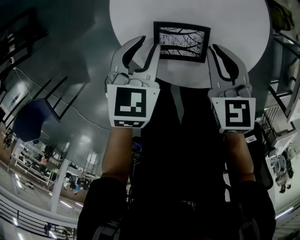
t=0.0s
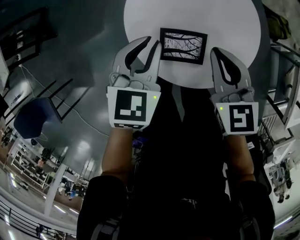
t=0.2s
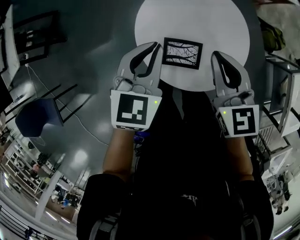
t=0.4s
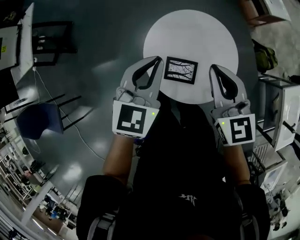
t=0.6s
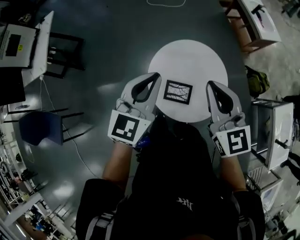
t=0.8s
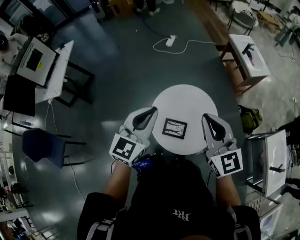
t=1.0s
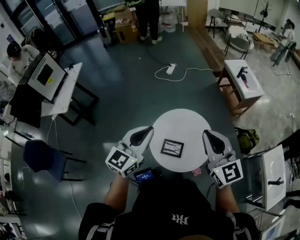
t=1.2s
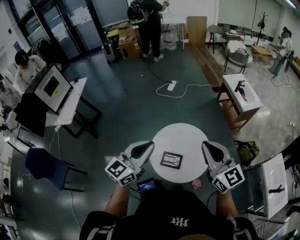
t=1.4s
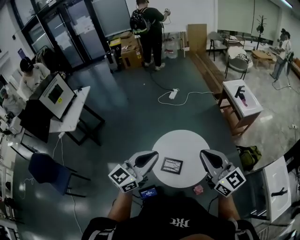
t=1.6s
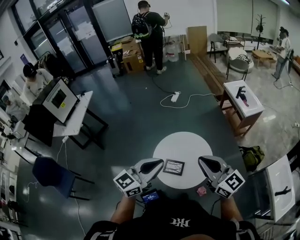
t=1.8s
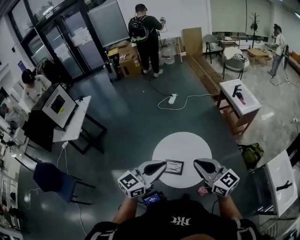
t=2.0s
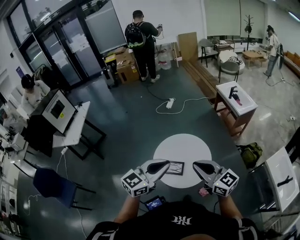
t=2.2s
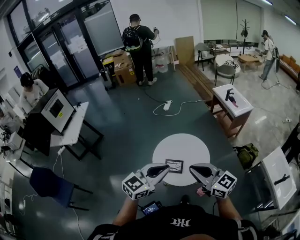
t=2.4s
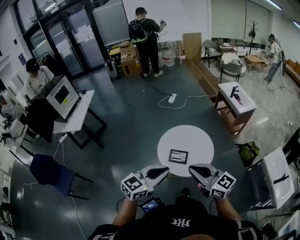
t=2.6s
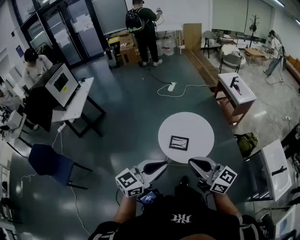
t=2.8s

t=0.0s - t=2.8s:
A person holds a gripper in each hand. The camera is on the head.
t=0.0s - t=1.4s: Both grippers move upward, about 50 cm. The right gripper tilts its fingers roughly 50 degrees upward, while the left gripper tips its fingers upward by approximately 50 degrees, and closes.
t=1.4s - t=2.8s: The right gripper is displaced backward and to the left by some 30 cm, and turns by about 30 degrees. The left gripper heads backward, covering some 25 cm.

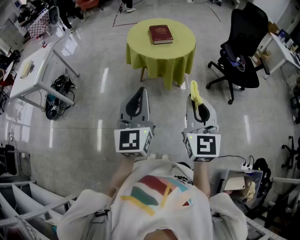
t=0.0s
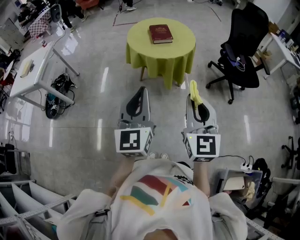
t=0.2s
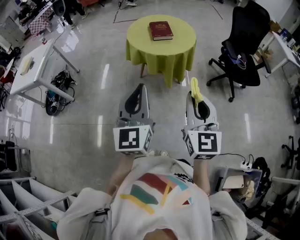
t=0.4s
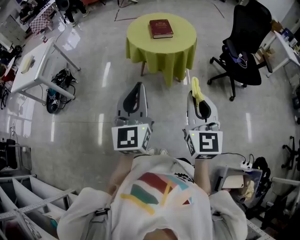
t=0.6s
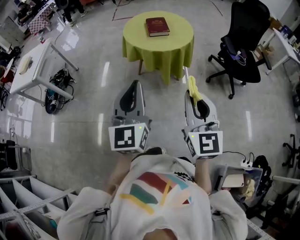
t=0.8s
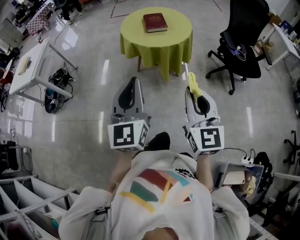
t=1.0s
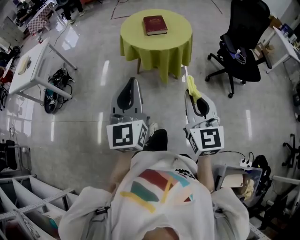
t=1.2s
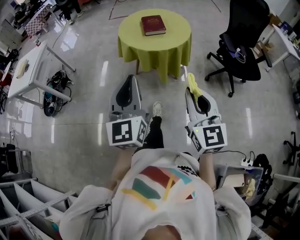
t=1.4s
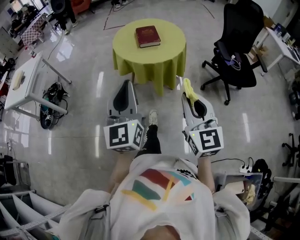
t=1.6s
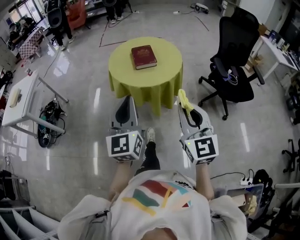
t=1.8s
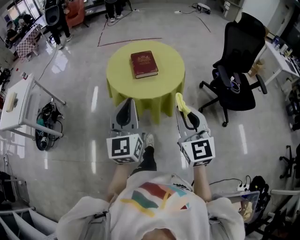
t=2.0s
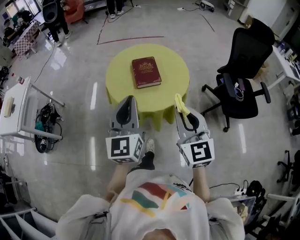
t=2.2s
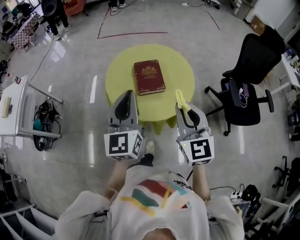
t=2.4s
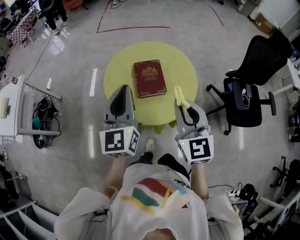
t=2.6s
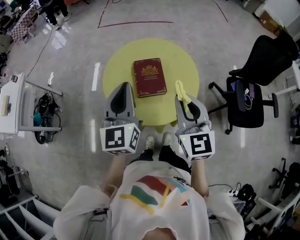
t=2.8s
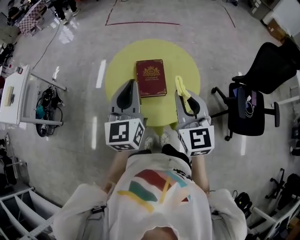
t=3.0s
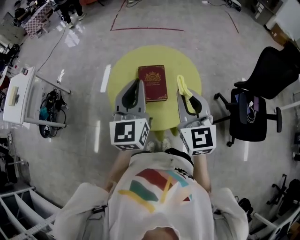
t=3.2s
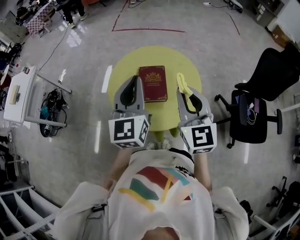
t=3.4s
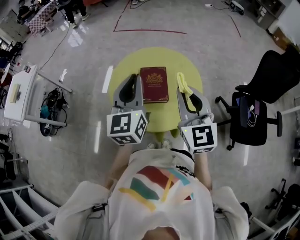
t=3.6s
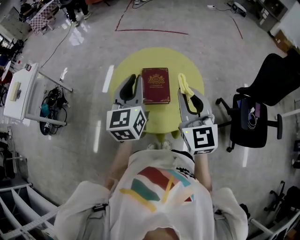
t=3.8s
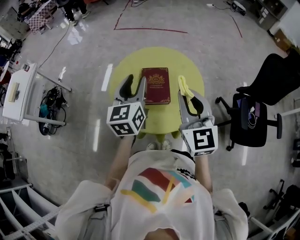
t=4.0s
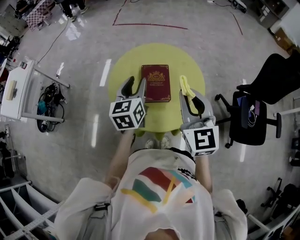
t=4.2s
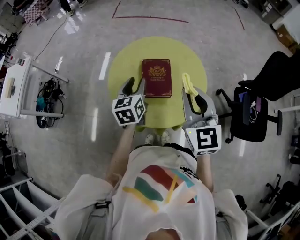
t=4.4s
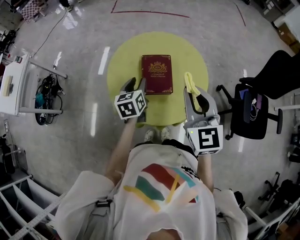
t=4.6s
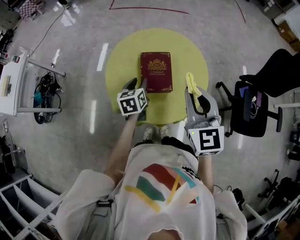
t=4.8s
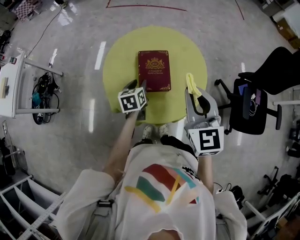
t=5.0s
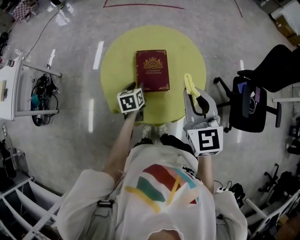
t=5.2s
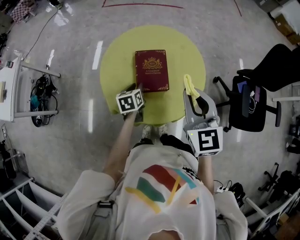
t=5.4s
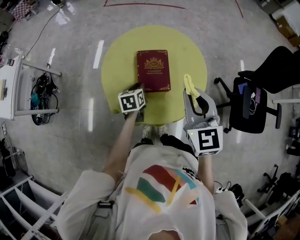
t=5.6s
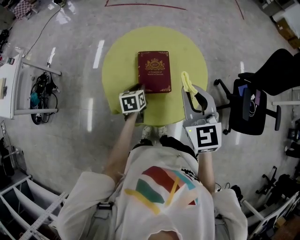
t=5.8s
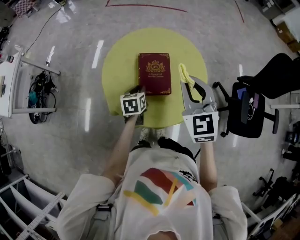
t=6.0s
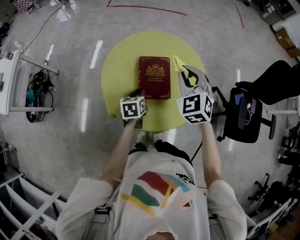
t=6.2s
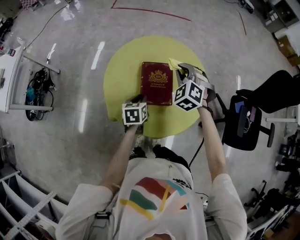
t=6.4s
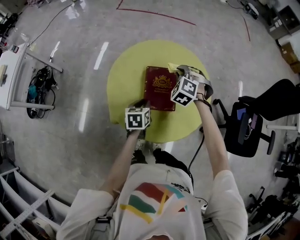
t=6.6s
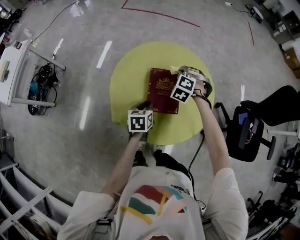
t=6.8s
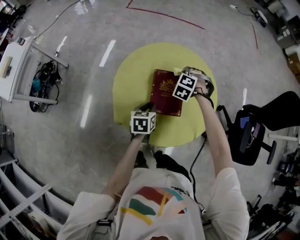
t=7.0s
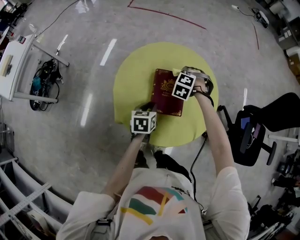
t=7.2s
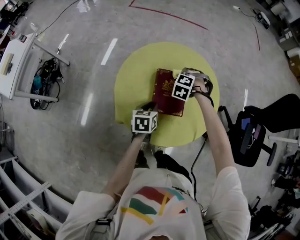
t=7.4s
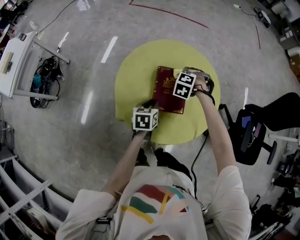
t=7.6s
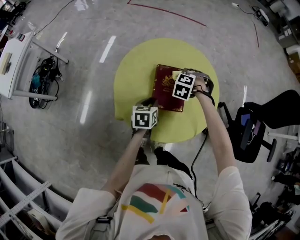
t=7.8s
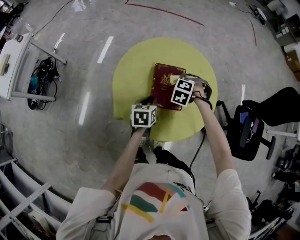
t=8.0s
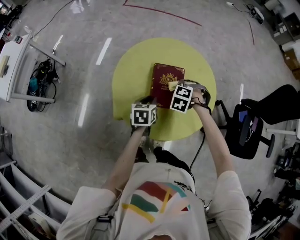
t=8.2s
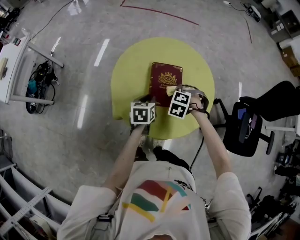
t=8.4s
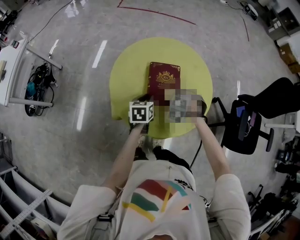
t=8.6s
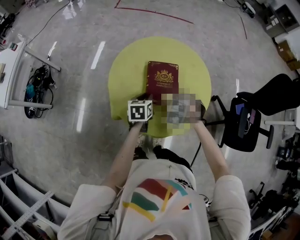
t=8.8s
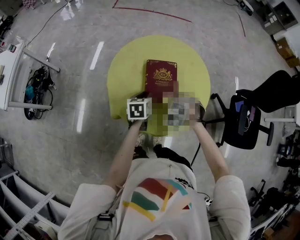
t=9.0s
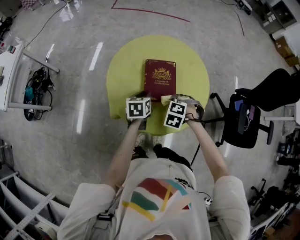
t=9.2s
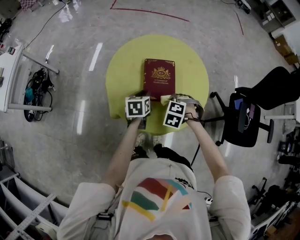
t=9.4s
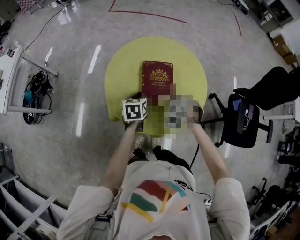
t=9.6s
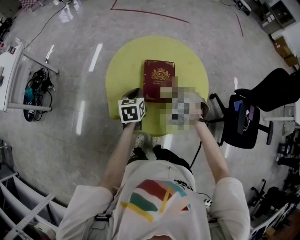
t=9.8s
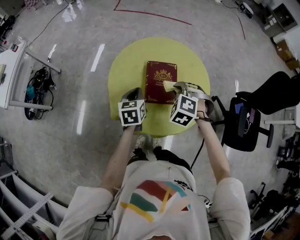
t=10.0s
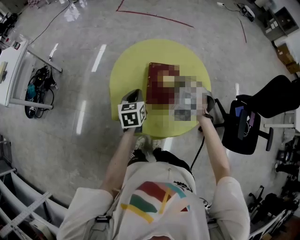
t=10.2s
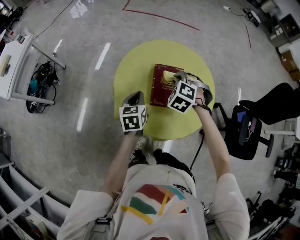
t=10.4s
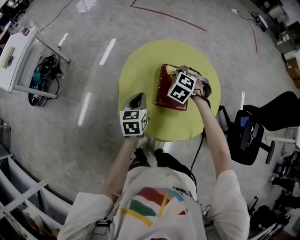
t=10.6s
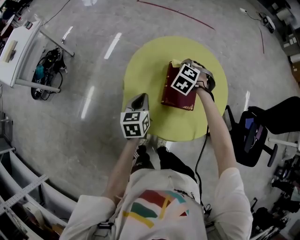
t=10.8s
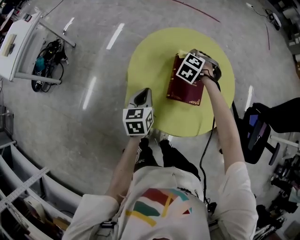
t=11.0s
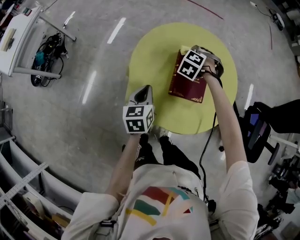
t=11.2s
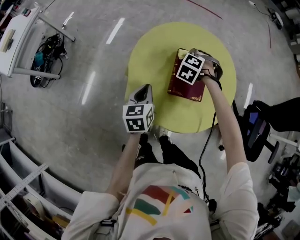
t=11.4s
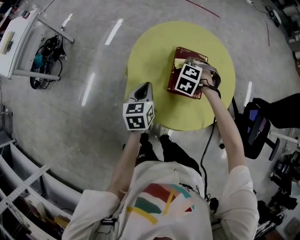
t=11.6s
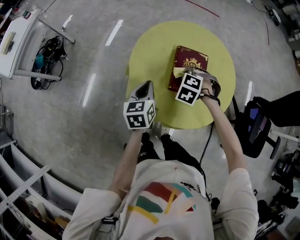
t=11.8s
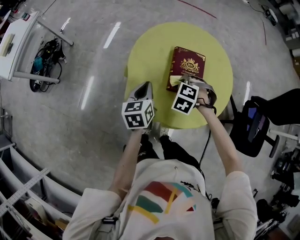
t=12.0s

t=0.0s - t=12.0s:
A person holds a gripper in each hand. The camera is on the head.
t=0.0s - t=1.6s: The left gripper travels forward by roughly 10 cm. Meanwhile the right gripper shifts about 10 cm forward and to the right.
t=1.6s - t=3.0s: Both grippers are carried forward, about 50 cm.
t=3.0s - t=4.4s: The left gripper goes about 15 cm downward and forward, changes its angle by some 30 degrees, and opens up.
t=4.4s - t=6.0s: The right gripper heads forward, covering about 5 cm, while the left gripper moves downward, about 15 cm, and turns by some 20 degrees.
t=6.0s - t=7.6s: The right gripper shifts approximately 30 cm downward and forward, and angles its fingers downward, by some 50 degrees.
t=7.6s - t=9.0s: The right gripper changes place by roughly 20 cm.
t=9.0s - t=10.4s: The left gripper moves upward, approximately 5 cm. The right gripper moves approximately 15 cm.
t=10.4s - t=12.0s: The left gripper shifts by some 5 cm. The right gripper heads downward and backward, covering roughly 10 cm.

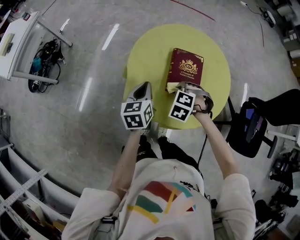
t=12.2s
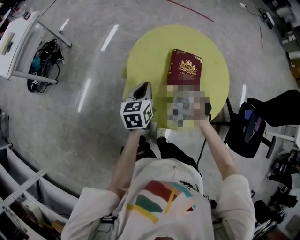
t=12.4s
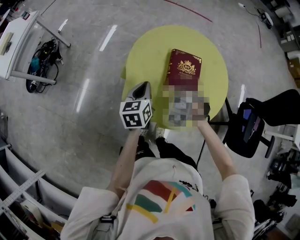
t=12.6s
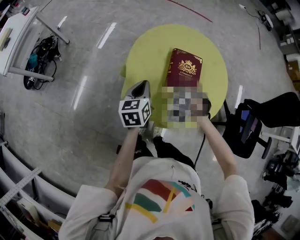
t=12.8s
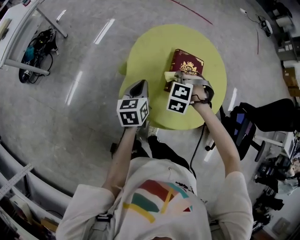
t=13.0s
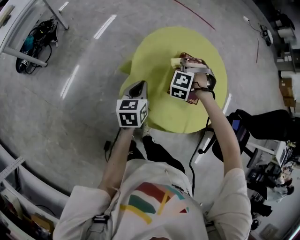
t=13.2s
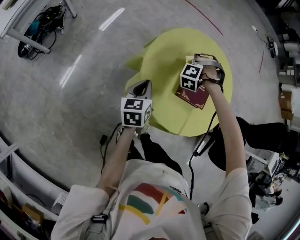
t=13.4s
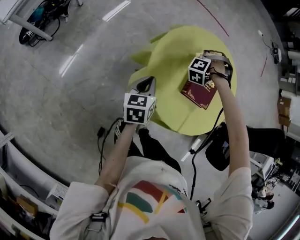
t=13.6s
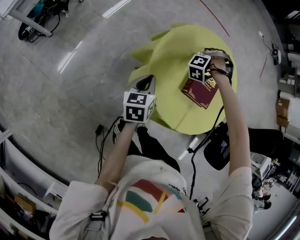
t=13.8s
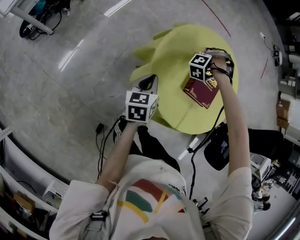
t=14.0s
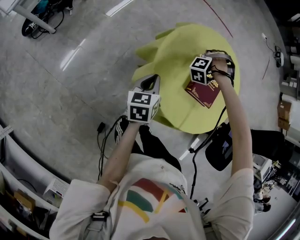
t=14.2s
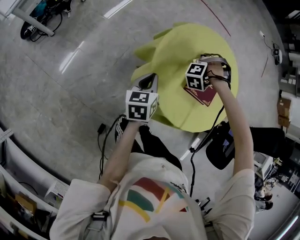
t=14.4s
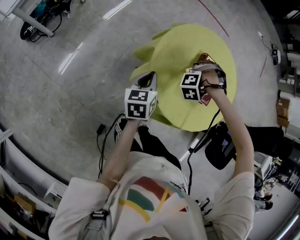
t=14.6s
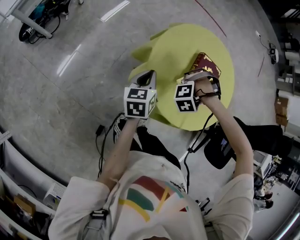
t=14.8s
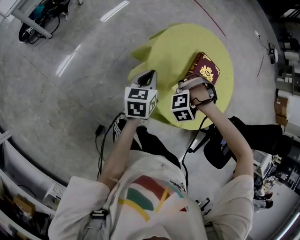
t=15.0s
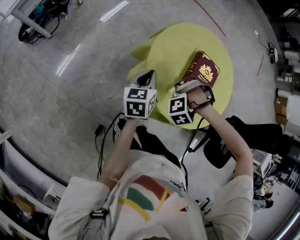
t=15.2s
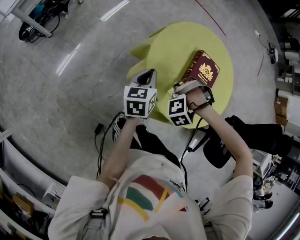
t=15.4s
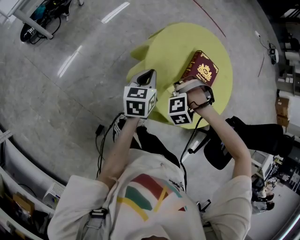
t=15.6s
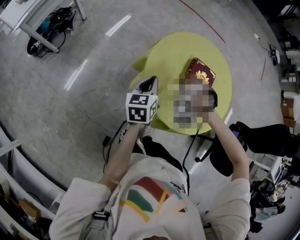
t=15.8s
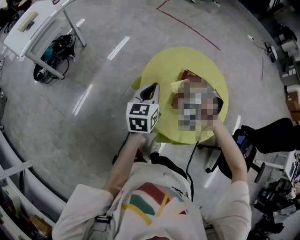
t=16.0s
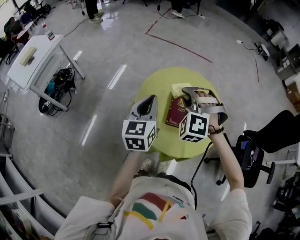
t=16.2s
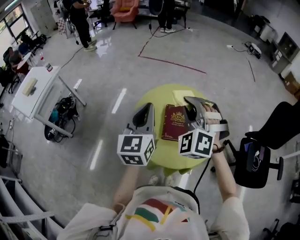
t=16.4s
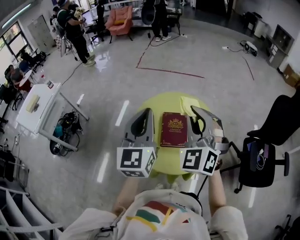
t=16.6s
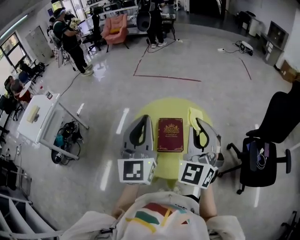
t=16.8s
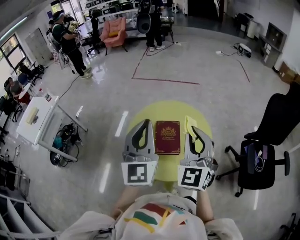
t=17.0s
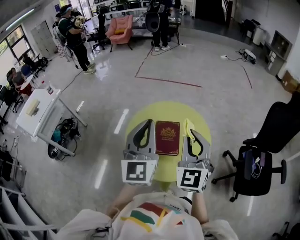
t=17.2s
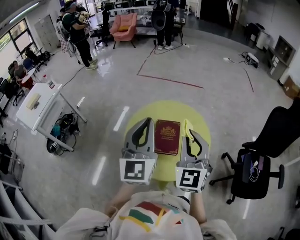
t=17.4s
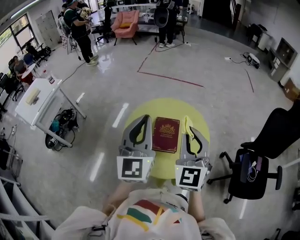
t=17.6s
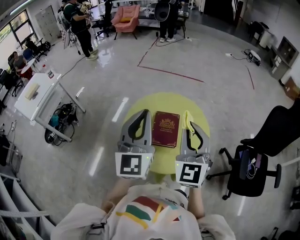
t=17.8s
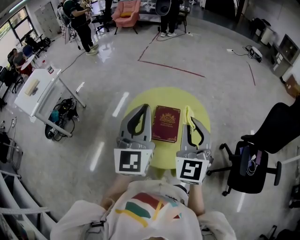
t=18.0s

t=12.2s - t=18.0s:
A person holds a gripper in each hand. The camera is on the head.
t=12.2s - t=13.6s: The right gripper changes place by some 20 cm, and turns by some 50 degrees, while the left gripper moves about 5 cm.
t=13.6s - t=15.0s: The right gripper travels backward and to the right by roughly 20 cm, and changes its angle by some 30 degrees.
t=15.0s - t=16.6s: The two grippers go roughly 35 cm upward. The right gripper points its fingers about 60 degrees further upward. The left gripper angles its fingers upward, by some 30 degrees.
t=16.6s - t=18.0s: The right gripper shifts by roughly 5 cm, and rotates approximately 30 degrees.

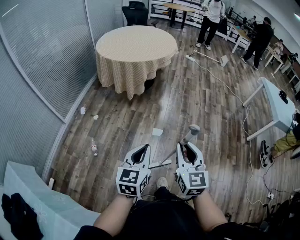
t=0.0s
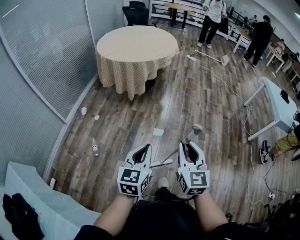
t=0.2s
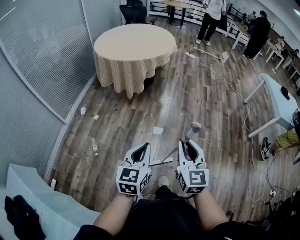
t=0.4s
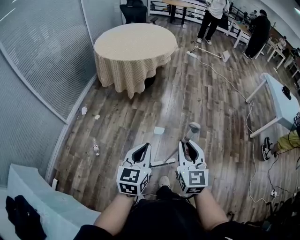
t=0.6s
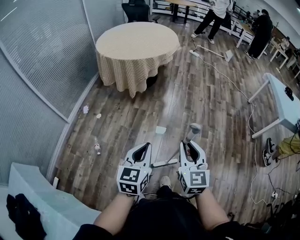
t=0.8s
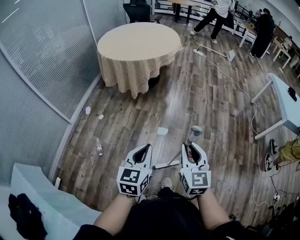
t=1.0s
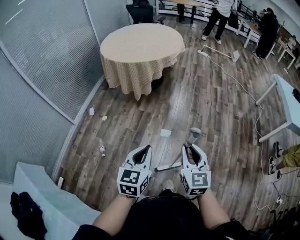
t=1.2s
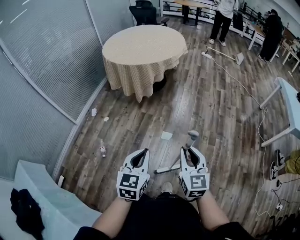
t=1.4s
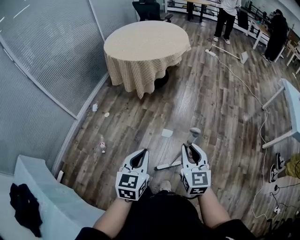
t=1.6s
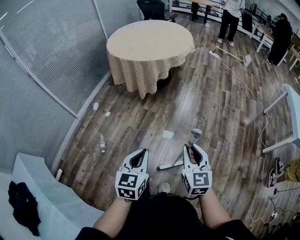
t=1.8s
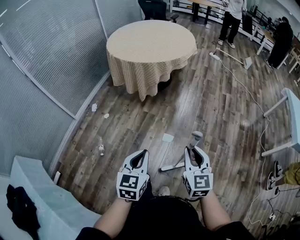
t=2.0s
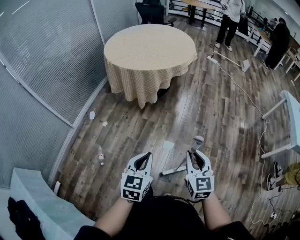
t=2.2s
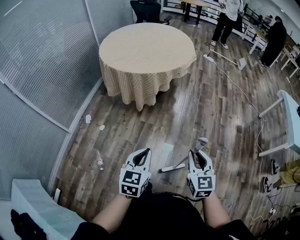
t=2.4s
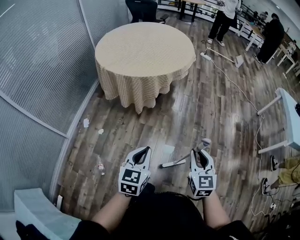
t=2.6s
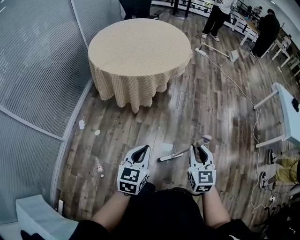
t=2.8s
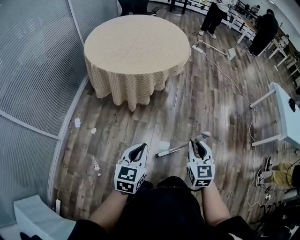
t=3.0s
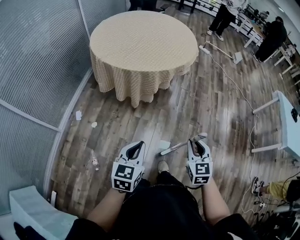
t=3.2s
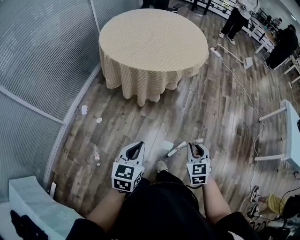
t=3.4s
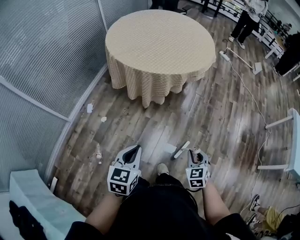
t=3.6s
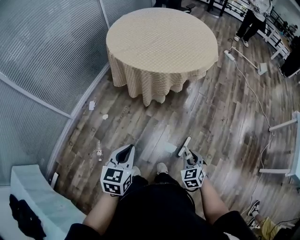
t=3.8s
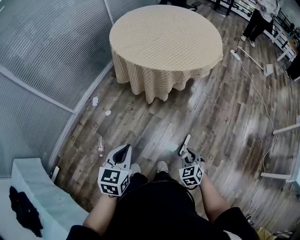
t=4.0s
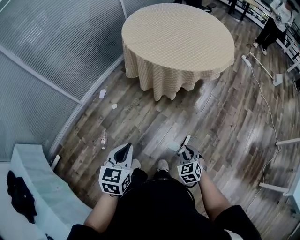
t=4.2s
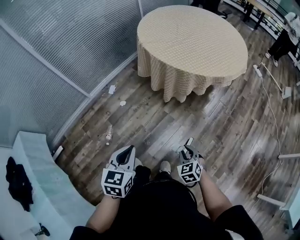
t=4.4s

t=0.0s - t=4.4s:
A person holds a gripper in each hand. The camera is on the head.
t=0.0s - t=1.4s: Both grippers move forward and to the right, approximately 10 cm.
t=1.4s - t=3.0s: Both grippers move forward and to the left, approximately 30 cm.
t=3.0s - t=4.4s: The left gripper rotates roughly 40 degrees; the right gripper is displaced downward by roughly 20 cm, and swivels about 50 degrees.
